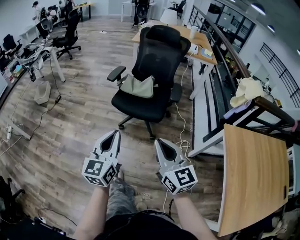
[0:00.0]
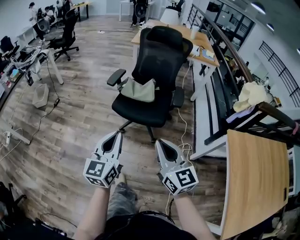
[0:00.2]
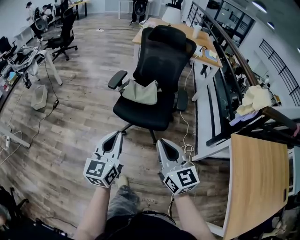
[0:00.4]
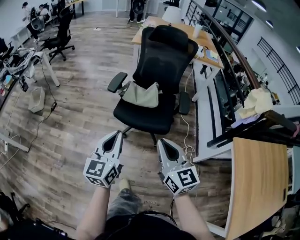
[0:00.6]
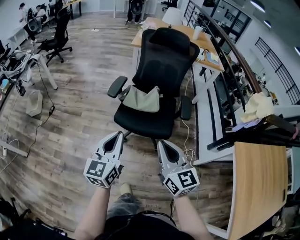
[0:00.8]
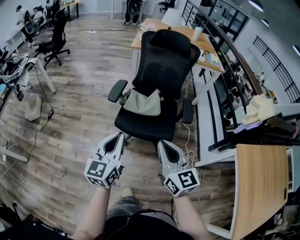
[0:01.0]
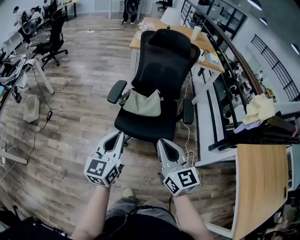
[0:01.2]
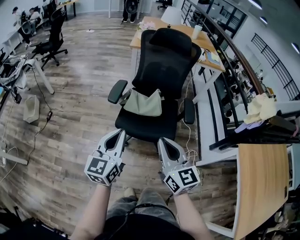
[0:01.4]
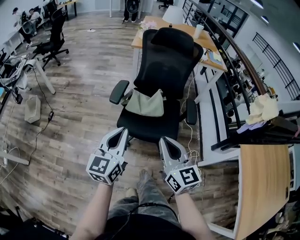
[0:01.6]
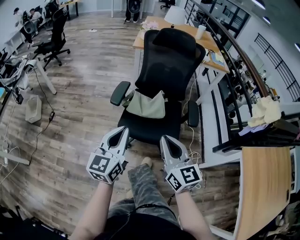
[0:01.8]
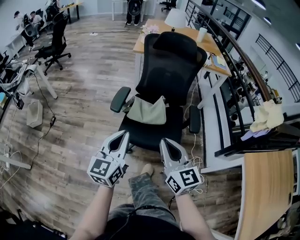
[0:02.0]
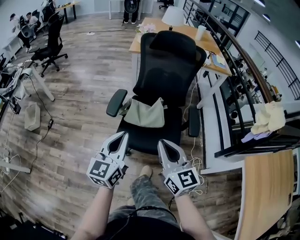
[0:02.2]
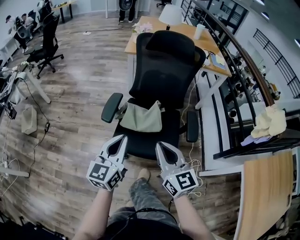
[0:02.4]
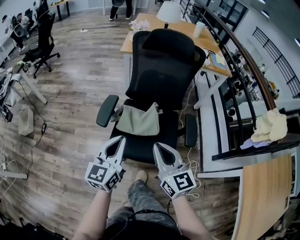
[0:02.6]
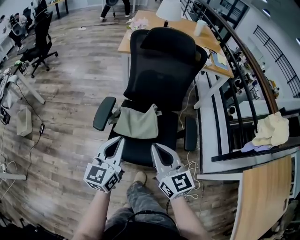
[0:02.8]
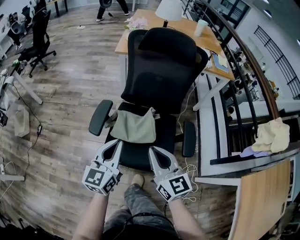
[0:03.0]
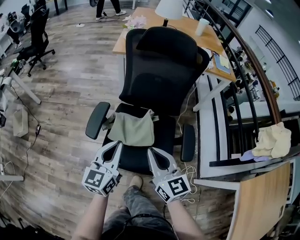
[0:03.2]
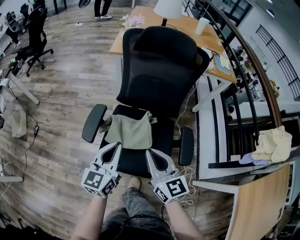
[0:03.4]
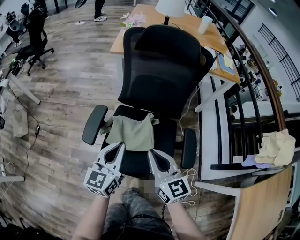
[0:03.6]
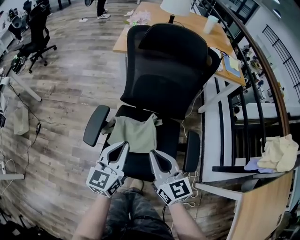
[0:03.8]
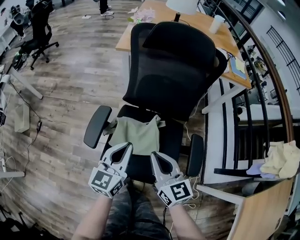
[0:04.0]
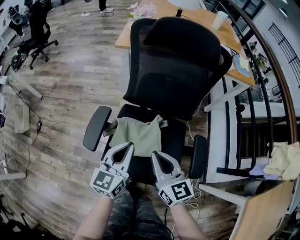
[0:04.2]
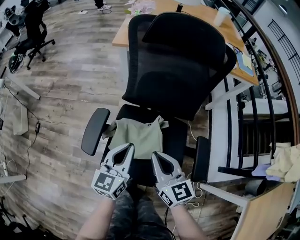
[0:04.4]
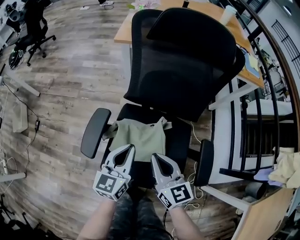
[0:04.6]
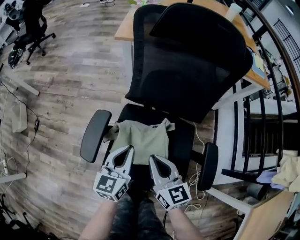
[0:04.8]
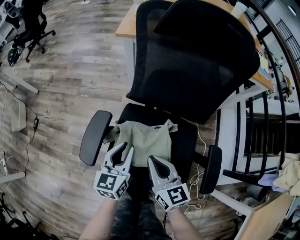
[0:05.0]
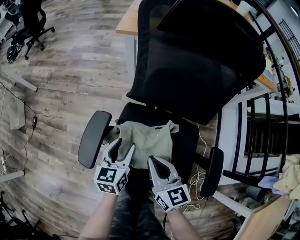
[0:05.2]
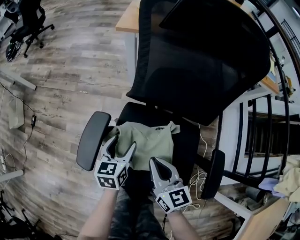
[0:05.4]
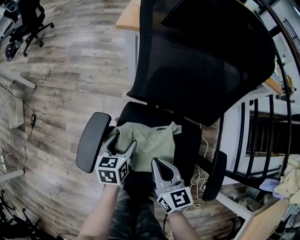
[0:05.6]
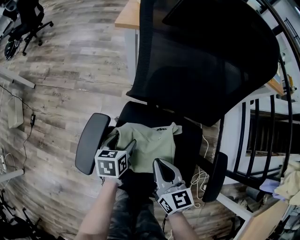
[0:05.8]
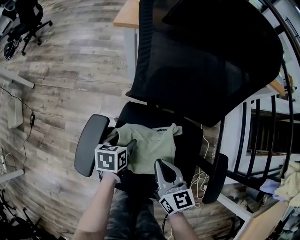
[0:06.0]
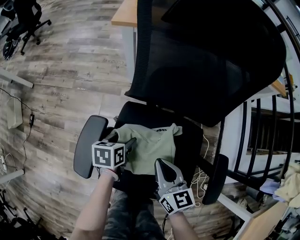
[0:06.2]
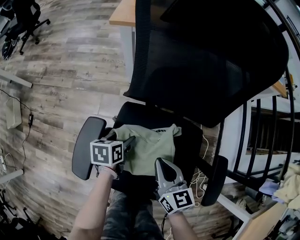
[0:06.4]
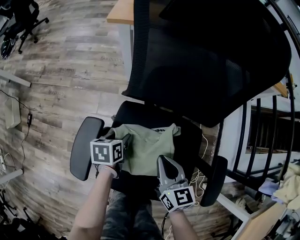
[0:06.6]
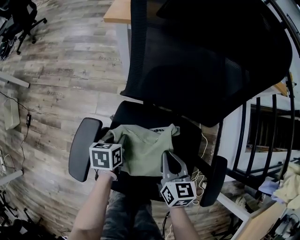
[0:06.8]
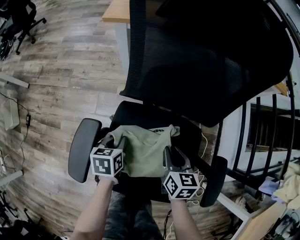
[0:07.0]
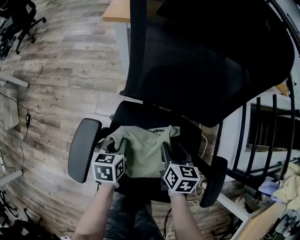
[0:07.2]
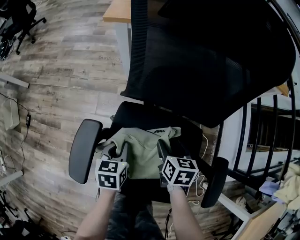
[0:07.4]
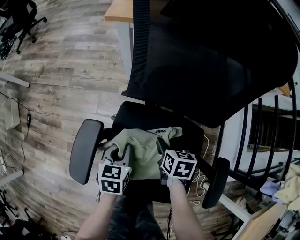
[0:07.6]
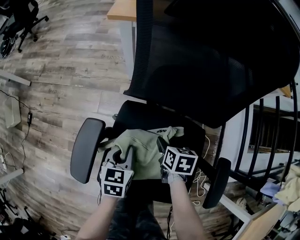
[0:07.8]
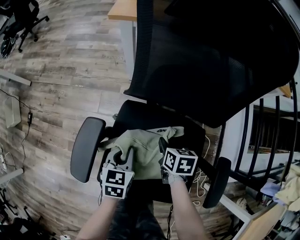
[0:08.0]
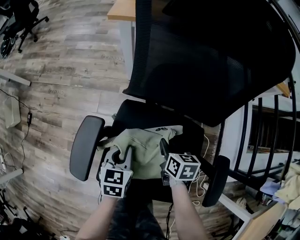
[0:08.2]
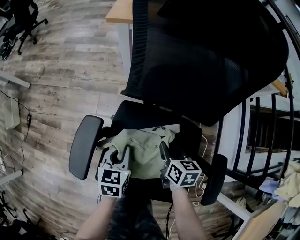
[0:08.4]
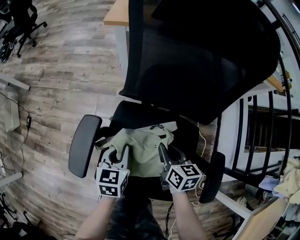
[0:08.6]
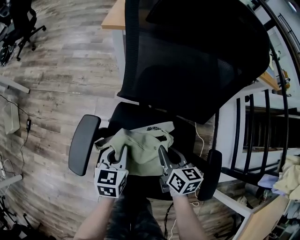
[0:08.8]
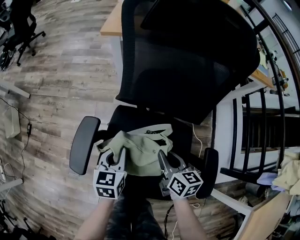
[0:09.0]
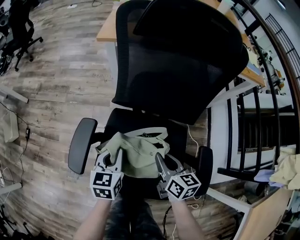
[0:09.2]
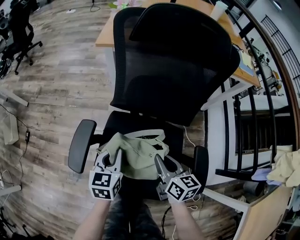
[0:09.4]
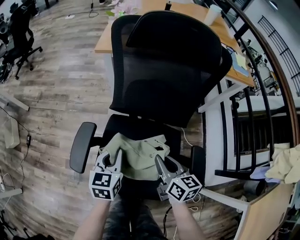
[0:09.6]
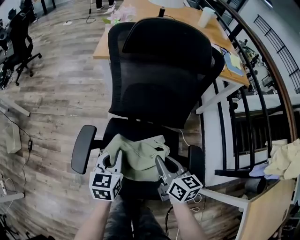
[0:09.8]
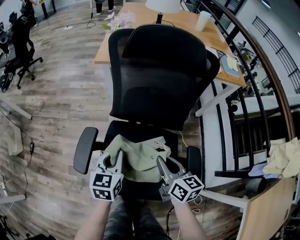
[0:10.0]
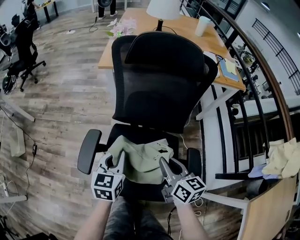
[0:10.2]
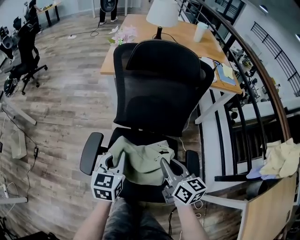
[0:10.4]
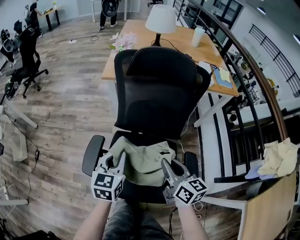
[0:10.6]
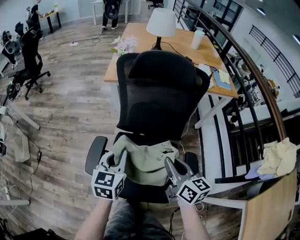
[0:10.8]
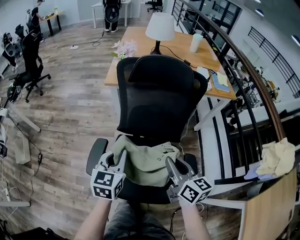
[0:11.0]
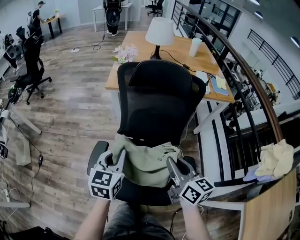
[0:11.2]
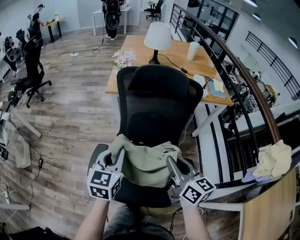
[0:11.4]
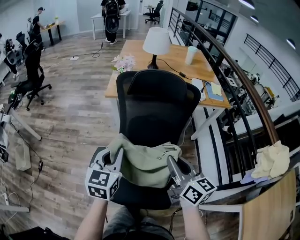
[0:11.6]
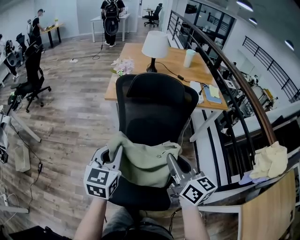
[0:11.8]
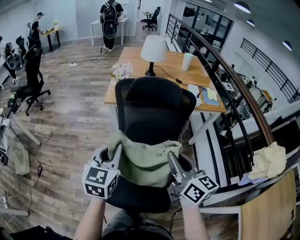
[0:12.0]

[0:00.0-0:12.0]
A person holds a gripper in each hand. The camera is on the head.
0:00.0 to 0:01.6: The right gripper heads forward and to the left, covering about 25 cm. Meanwhile the left gripper shifts about 25 cm forward.
0:01.6 to 0:03.0: Both grippers move forward, approximately 20 cm.
0:03.0 to 0:04.4: The two grippers go approximately 15 cm forward and downward.
0:04.4 to 0:06.0: The left gripper goes some 25 cm downward, angles its fingers downward, by approximately 40 degrees, and opens up; the right gripper shifts roughly 15 cm downward and forward.
0:06.0 to 0:07.6: The right gripper shifts about 15 cm downward and forward, angles its fingers downward, by approximately 30 degrees, and opens up; the left gripper closes up.
0:07.6 to 0:09.0: The right gripper heads upward and backward, covering approximately 10 cm, rotates about 30 degrees, and closes; the left gripper goes approximately 5 cm upward.
0:09.0 to 0:10.4: Both grippers travel together upward, some 15 cm.
0:10.4 to 0:12.0: The grippers both shift upward by approximately 20 cm.

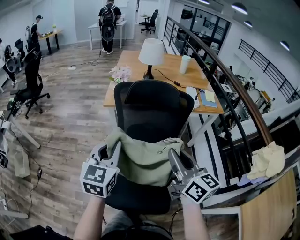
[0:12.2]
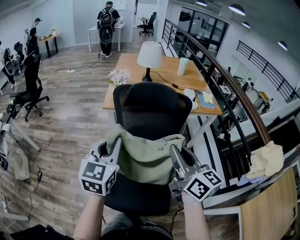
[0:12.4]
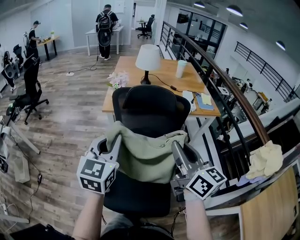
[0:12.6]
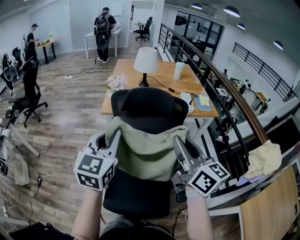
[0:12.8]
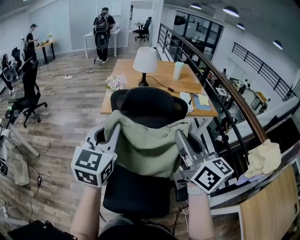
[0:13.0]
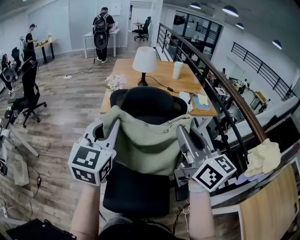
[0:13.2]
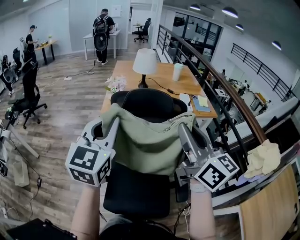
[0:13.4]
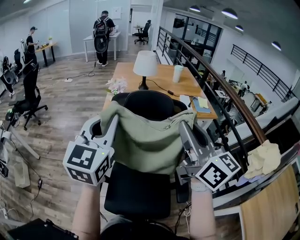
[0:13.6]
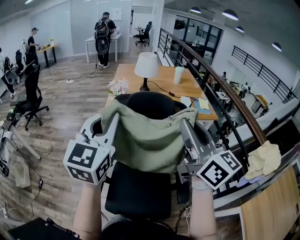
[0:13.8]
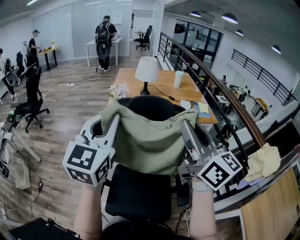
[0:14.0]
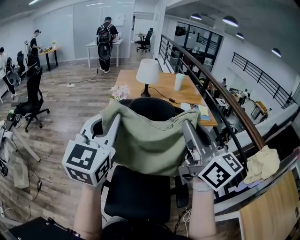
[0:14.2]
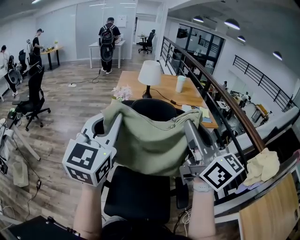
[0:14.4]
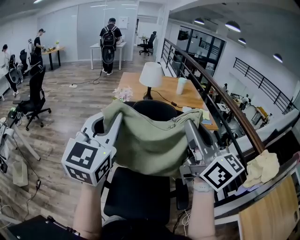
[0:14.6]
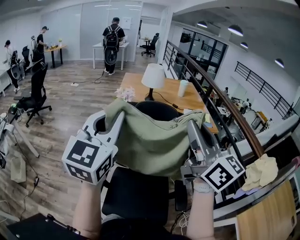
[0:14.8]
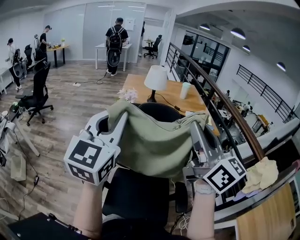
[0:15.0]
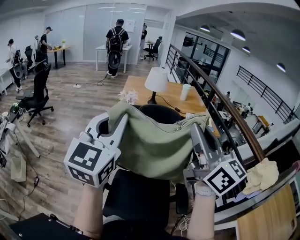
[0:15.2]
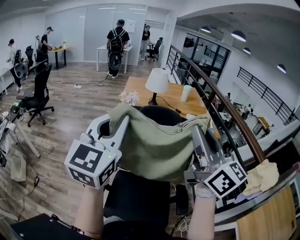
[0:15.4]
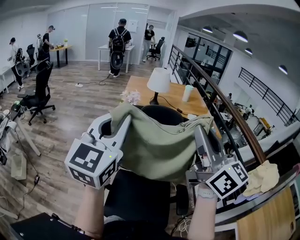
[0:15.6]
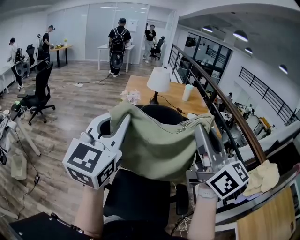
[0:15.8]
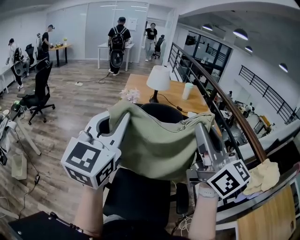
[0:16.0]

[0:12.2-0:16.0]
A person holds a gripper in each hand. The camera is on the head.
0:12.2 to 0:13.4: The two grippers go some 15 cm upward.
0:13.4 to 0:14.8: Both grippers move upward, some 5 cm.
0:14.8 to 0:16.0: The grippers stay close to where they were, moving slightly.

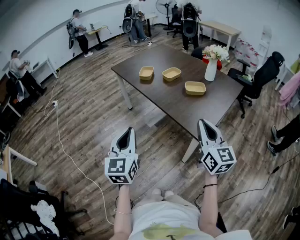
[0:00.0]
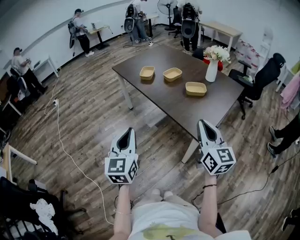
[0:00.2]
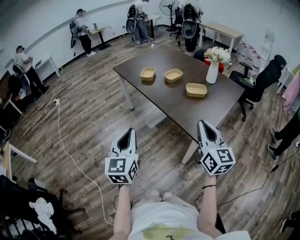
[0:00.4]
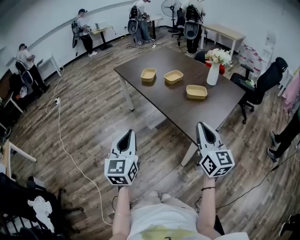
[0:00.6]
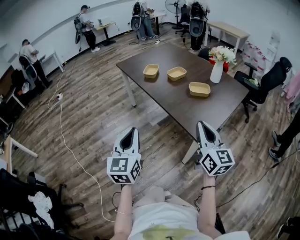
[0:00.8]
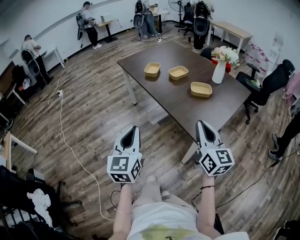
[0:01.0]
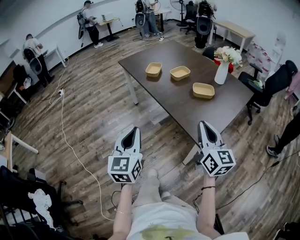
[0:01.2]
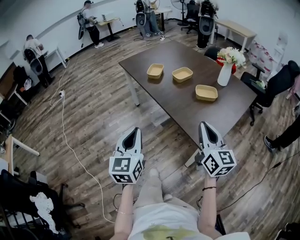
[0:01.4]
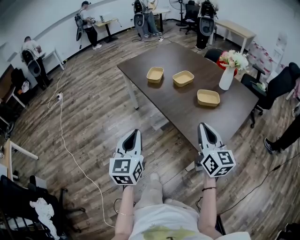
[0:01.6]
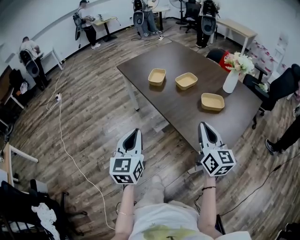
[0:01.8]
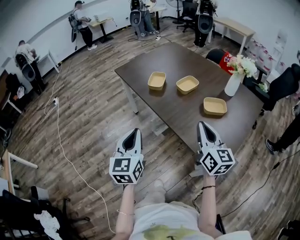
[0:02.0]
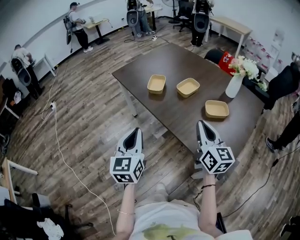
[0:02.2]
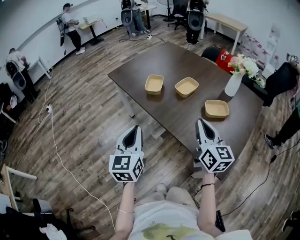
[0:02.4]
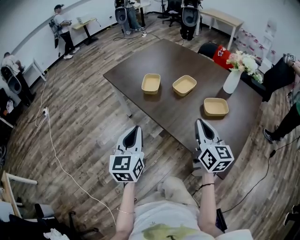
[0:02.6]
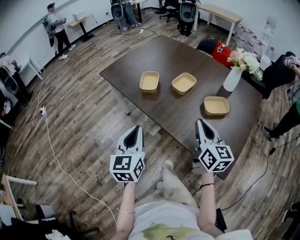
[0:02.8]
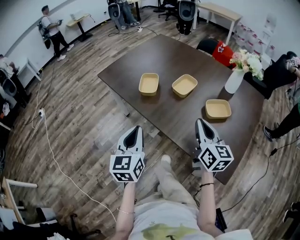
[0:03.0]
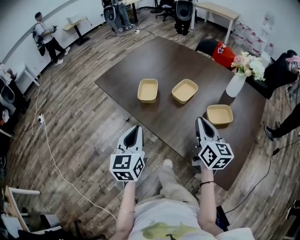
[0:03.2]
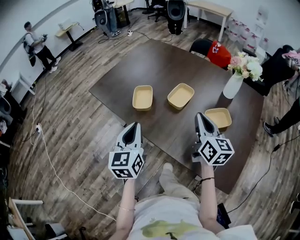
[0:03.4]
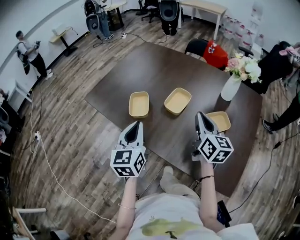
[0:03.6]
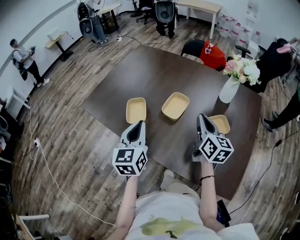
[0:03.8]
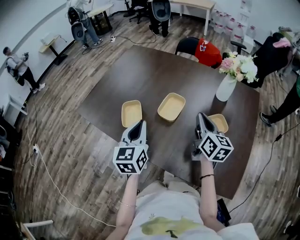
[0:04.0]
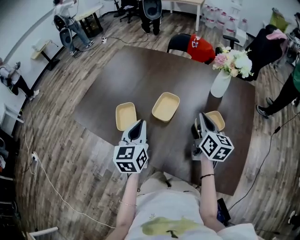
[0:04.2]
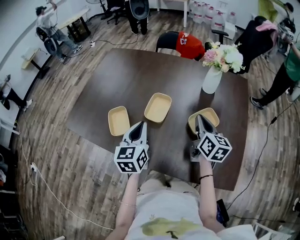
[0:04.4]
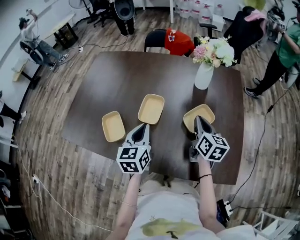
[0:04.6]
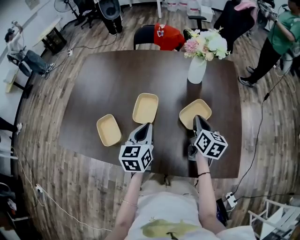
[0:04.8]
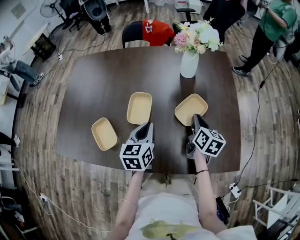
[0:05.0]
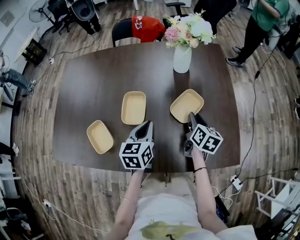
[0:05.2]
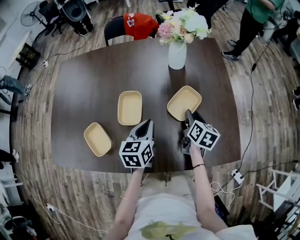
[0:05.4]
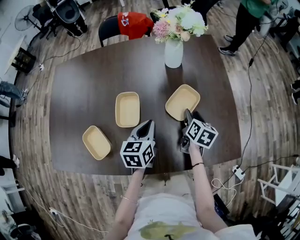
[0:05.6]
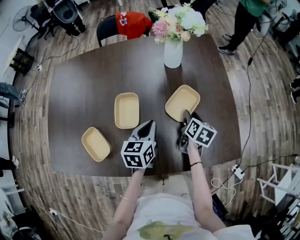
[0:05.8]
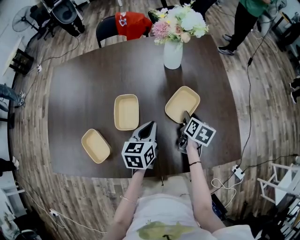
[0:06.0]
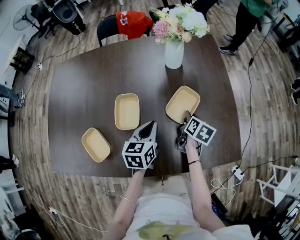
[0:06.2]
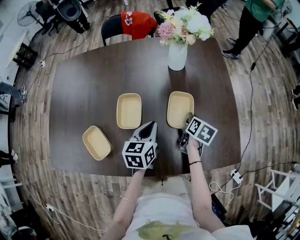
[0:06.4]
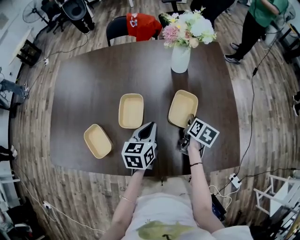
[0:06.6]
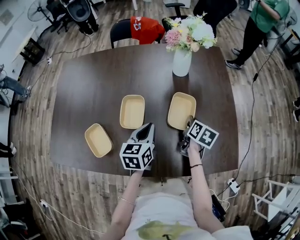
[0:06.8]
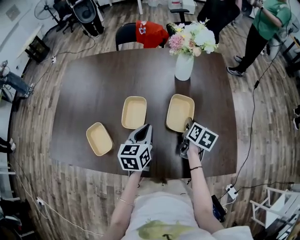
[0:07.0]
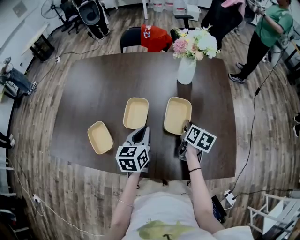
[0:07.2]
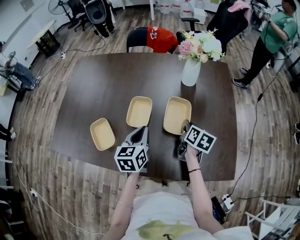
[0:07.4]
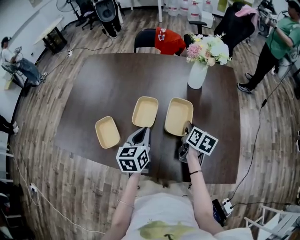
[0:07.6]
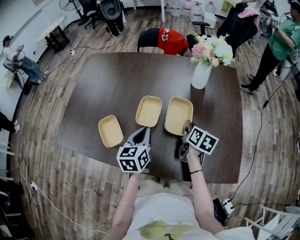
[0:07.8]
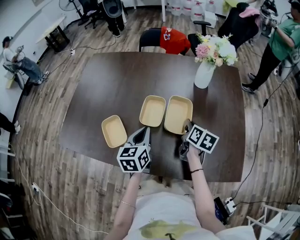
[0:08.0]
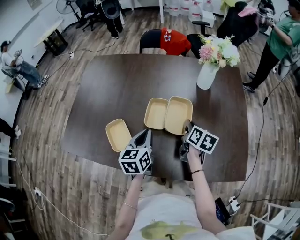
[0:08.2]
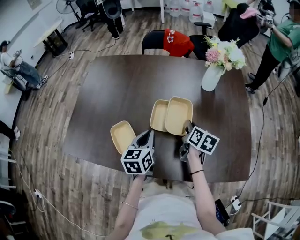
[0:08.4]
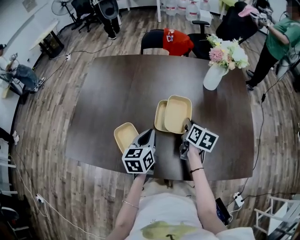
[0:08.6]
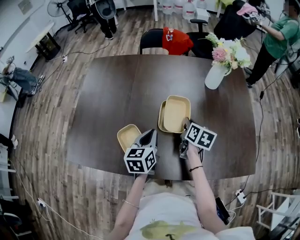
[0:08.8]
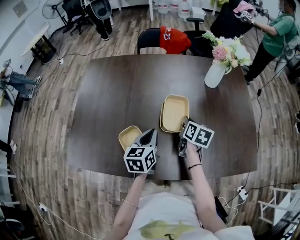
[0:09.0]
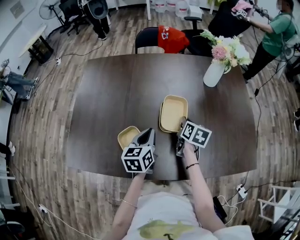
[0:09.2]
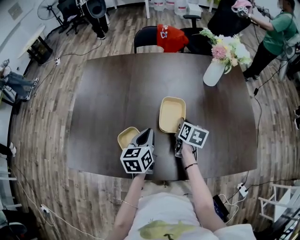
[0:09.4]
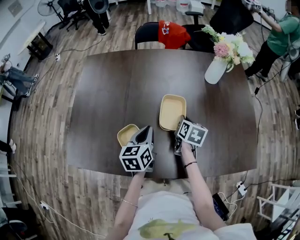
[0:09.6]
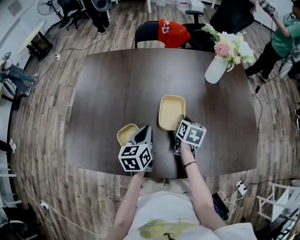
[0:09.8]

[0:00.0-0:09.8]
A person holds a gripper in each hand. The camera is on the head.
0:00.0 to 0:01.4: Both grippers travel together forward, some 5 cm.
0:01.4 to 0:02.8: Both grippers travel together forward, about 25 cm.
0:02.8 to 0:04.2: The two grippers go some 25 cm forward. The right gripper rotates approximately 30 degrees.
0:04.2 to 0:05.6: The right gripper heads downward, covering about 15 cm, rotates about 40 degrees, and opens its fingers, while the left gripper ends up some 20 cm from where it was, and rotates approximately 40 degrees.
0:05.6 to 0:07.0: The right gripper closes its fingers.
0:07.0 to 0:08.4: Both grippers move to the left, approximately 15 cm.
0:08.4 to 0:09.8: Both grippers move to the left, about 5 cm.
